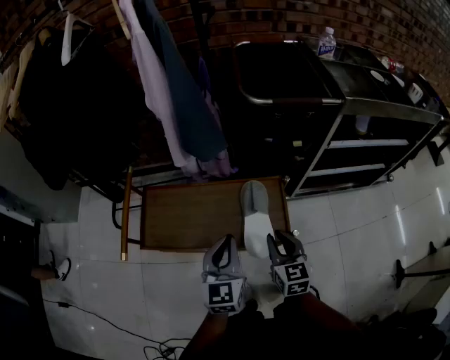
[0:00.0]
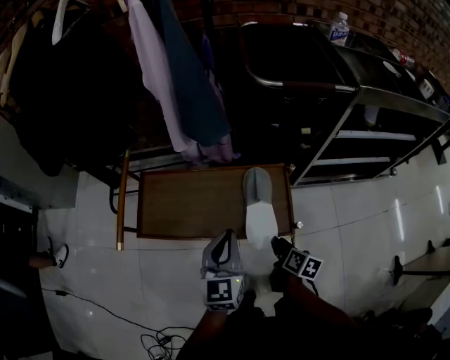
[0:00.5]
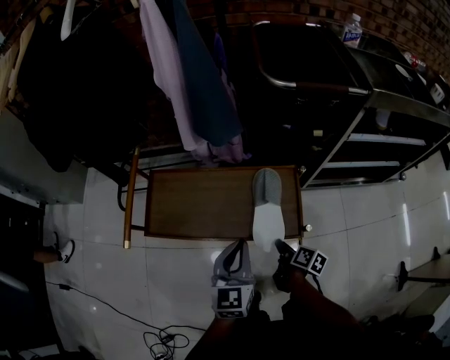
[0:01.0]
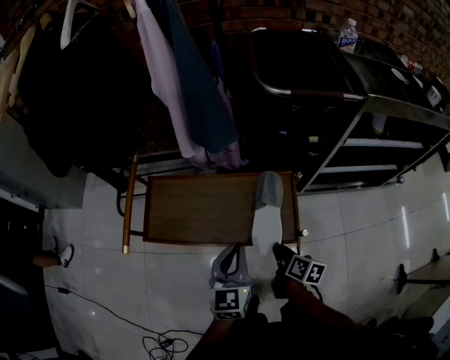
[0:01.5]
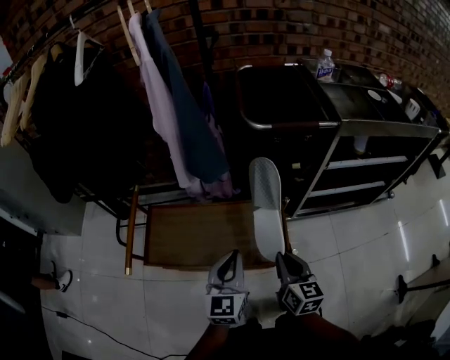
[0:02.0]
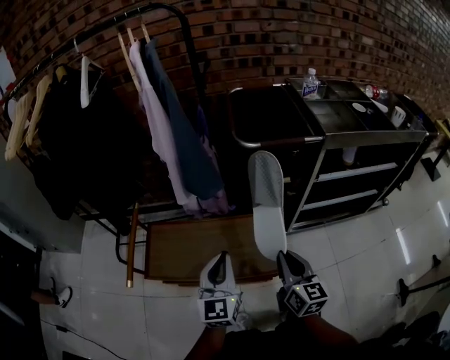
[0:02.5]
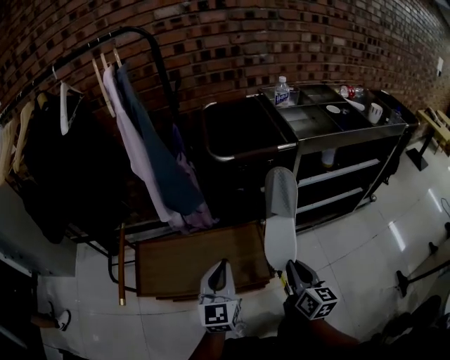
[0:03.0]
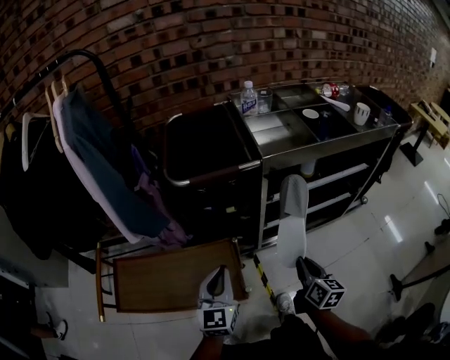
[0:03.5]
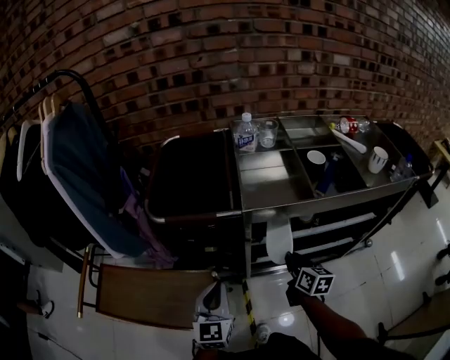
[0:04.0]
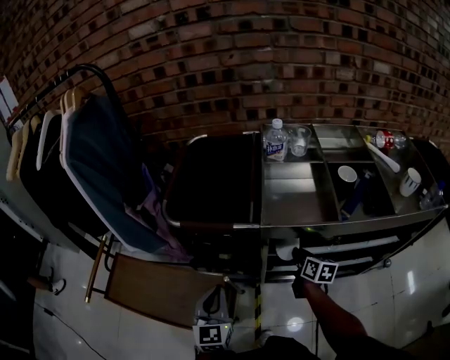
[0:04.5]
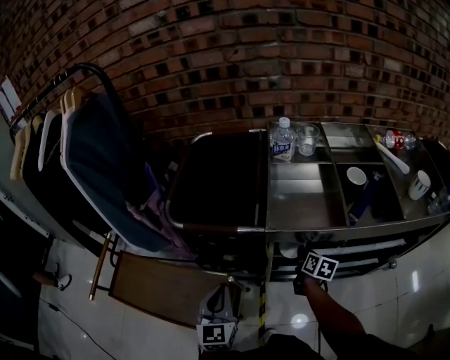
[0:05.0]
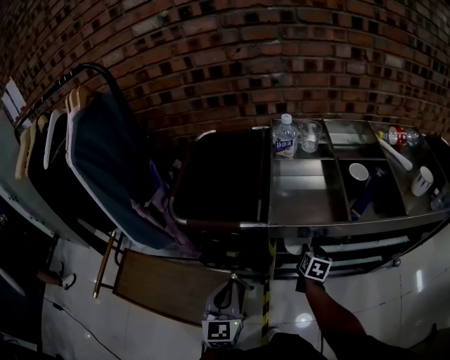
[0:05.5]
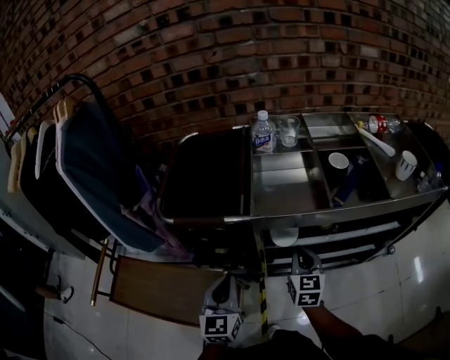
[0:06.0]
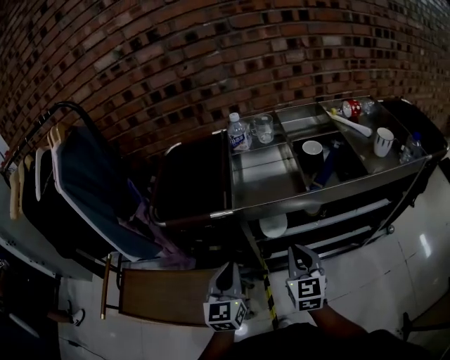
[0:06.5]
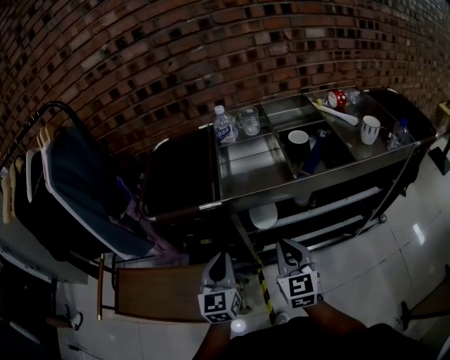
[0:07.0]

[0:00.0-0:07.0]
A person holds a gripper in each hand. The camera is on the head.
0:00.0 to 0:02.0: The right gripper moves some 15 cm downward and comes back.
0:02.0 to 0:03.5: The right gripper goes approximately 25 cm to the right, and rotates roughly 20 degrees. The left gripper heads to the right and forward, covering about 15 cm.
0:03.5 to 0:05.0: The left gripper travels forward and to the right by about 15 cm, and rotates roughly 20 degrees, while the right gripper shifts roughly 30 cm forward, and swivels approximately 20 degrees.
0:05.0 to 0:07.0: The right gripper travels upward and backward by about 25 cm, rotates roughly 50 degrees, and opens, then closes once more. Meanwhile the left gripper shifts some 10 cm to the right.

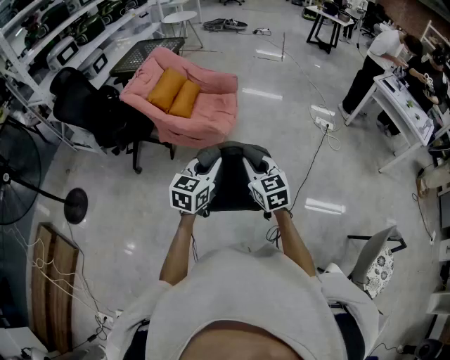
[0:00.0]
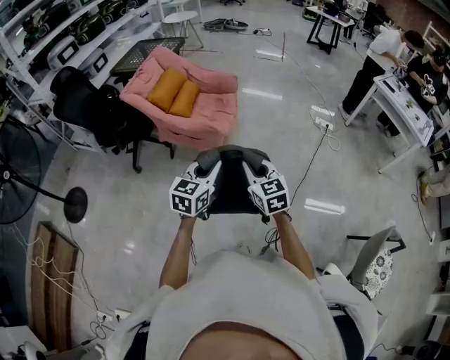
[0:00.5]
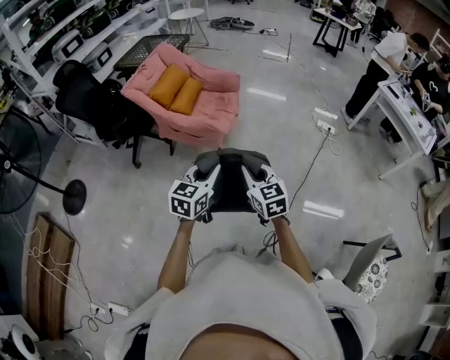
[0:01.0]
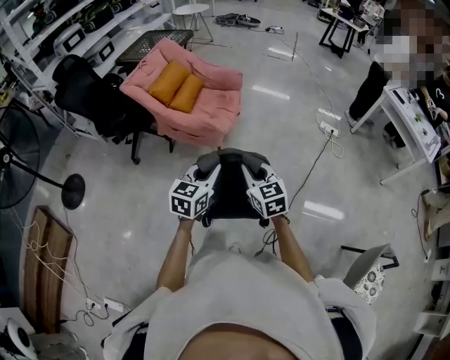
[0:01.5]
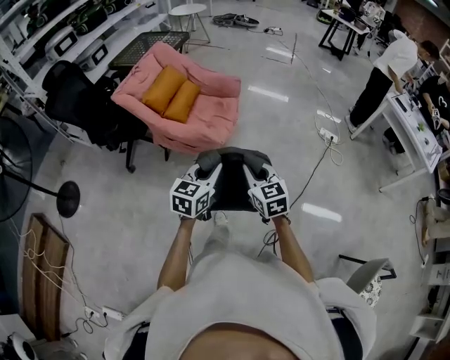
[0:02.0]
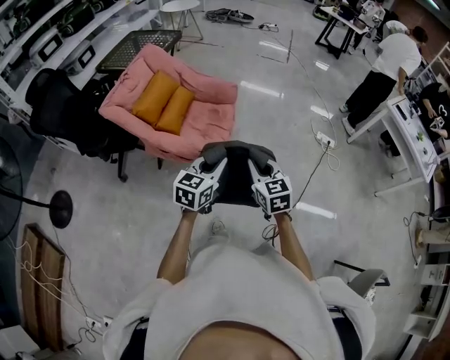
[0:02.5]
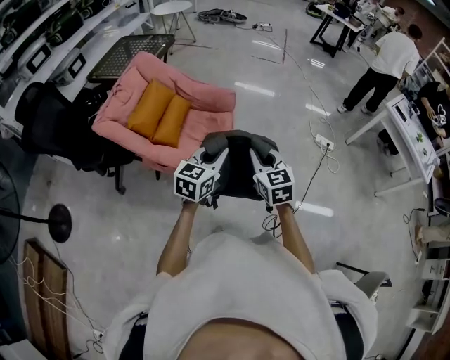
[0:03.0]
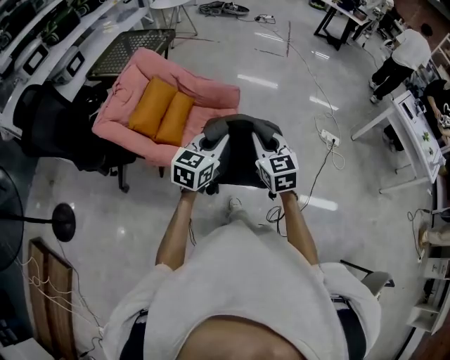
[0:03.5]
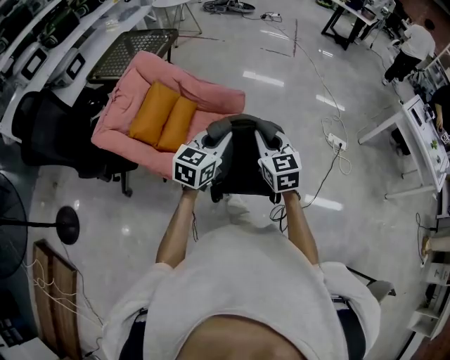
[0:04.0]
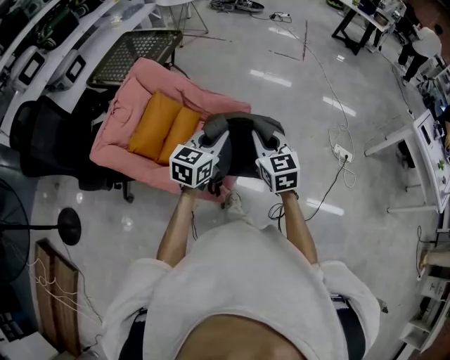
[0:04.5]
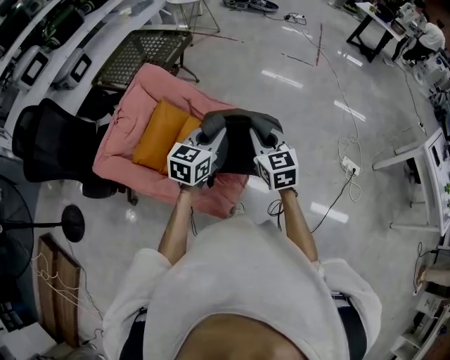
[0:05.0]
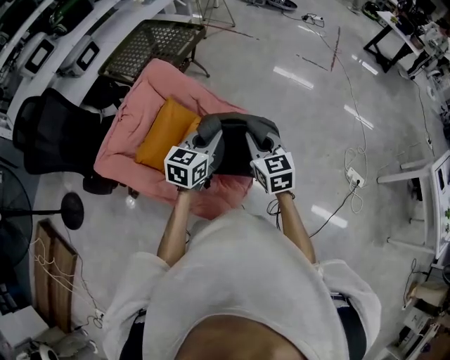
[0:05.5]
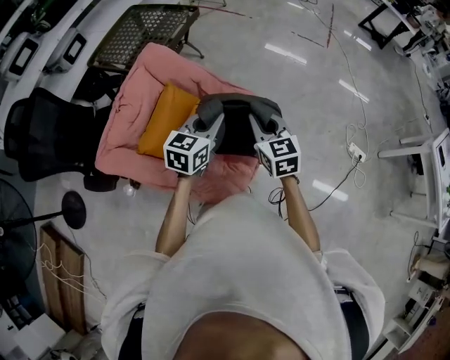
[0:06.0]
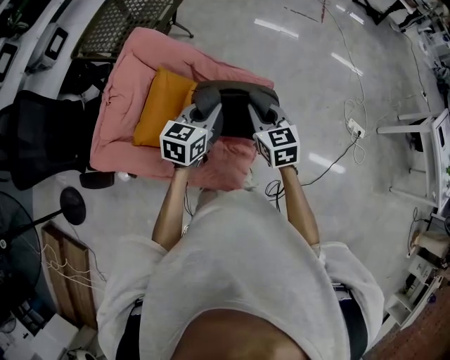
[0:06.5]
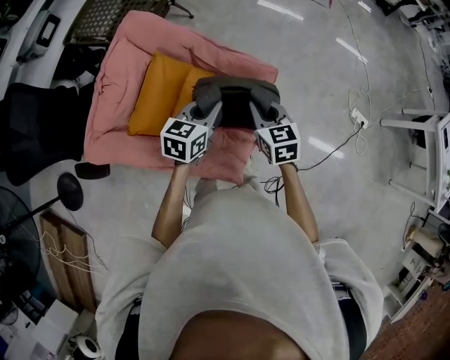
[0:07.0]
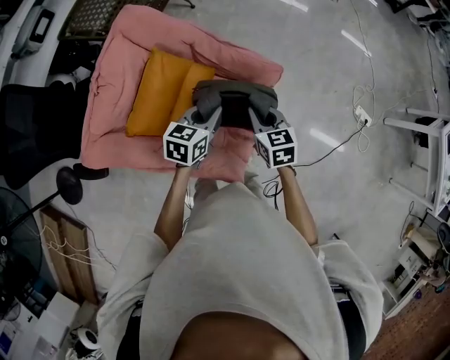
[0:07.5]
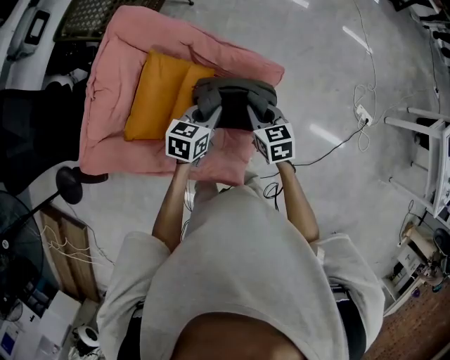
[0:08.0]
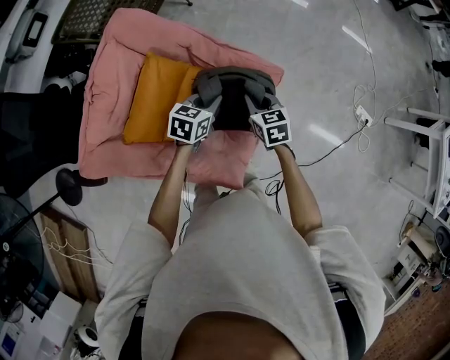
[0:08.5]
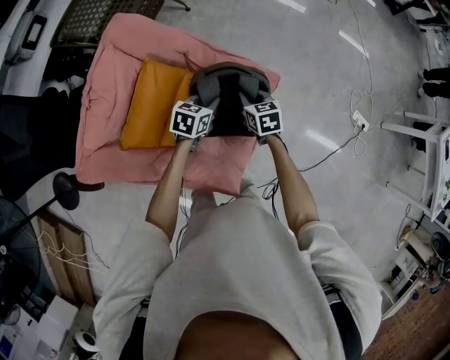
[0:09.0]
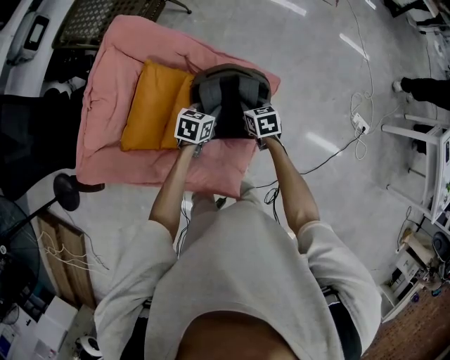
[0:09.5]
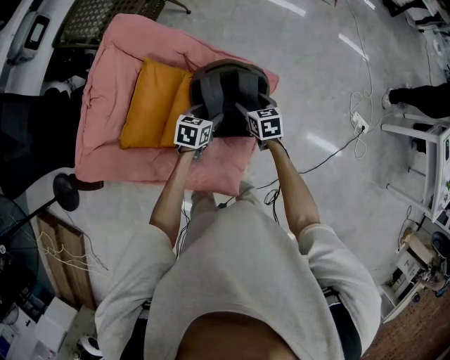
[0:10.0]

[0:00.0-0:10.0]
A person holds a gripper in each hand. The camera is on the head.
0:00.0 to 0:02.0: Both grippers travel together forward, about 10 cm.
0:02.0 to 0:04.0: The pair of grippers is taken forward, some 40 cm.
0:04.0 to 0:06.0: Both grippers travel together forward and to the left, about 35 cm.
0:06.0 to 0:08.0: The two grippers go approximately 20 cm downward. The right gripper rotates about 20 degrees. The left gripper changes its angle by about 20 degrees.
0:08.0 to 0:10.0: The right gripper heads downward and forward, covering some 10 cm, and opens its fingers. The left gripper goes some 10 cm downward, and opens.

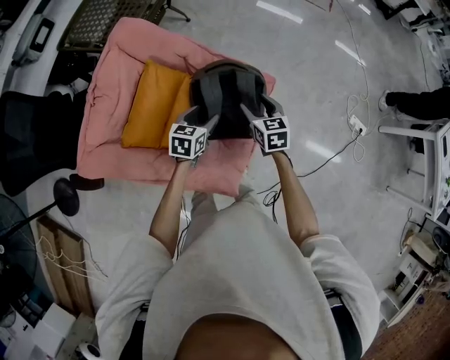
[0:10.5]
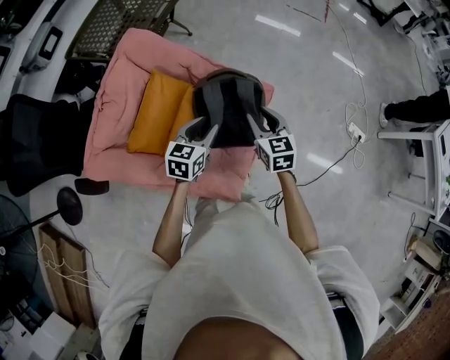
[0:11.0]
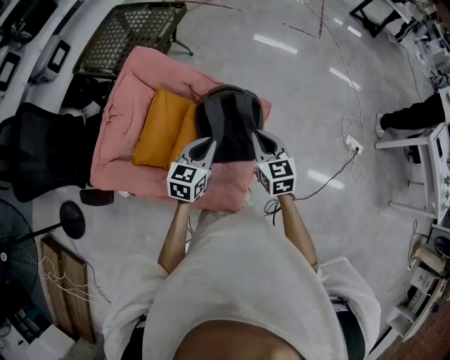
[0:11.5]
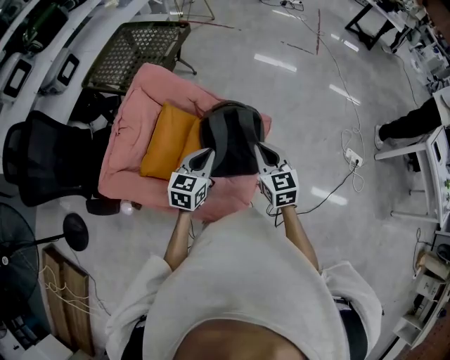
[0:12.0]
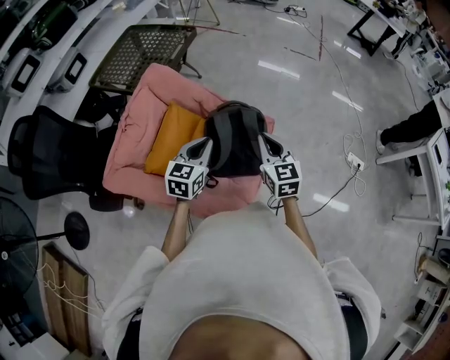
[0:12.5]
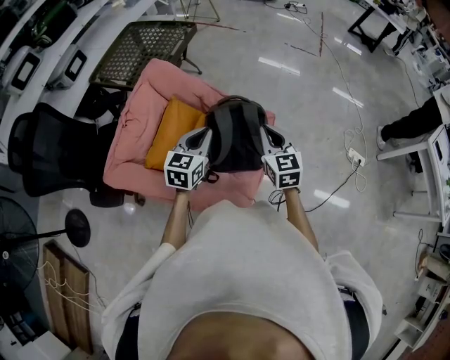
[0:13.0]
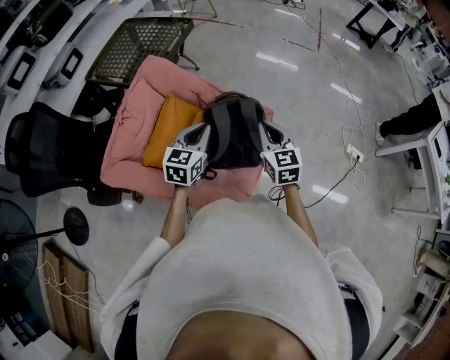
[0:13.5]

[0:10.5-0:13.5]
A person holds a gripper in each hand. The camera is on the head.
0:10.5 to 0:12.0: Both grippers move upward and backward, about 20 cm. The left gripper closes up, while the right gripper closes.
0:12.0 to 0:13.5: The grippers make only small movements.

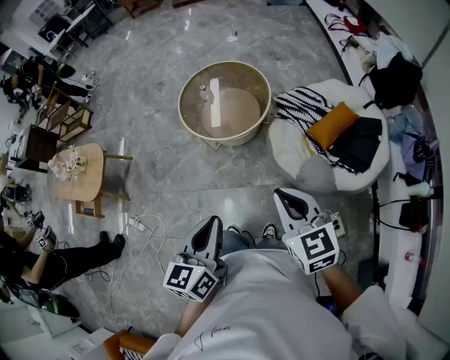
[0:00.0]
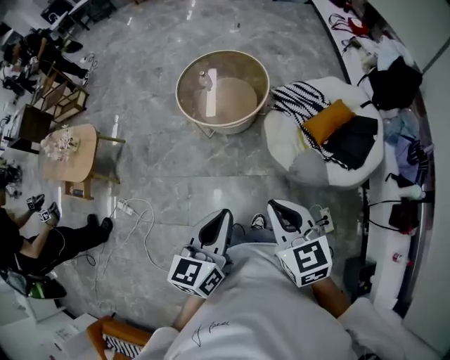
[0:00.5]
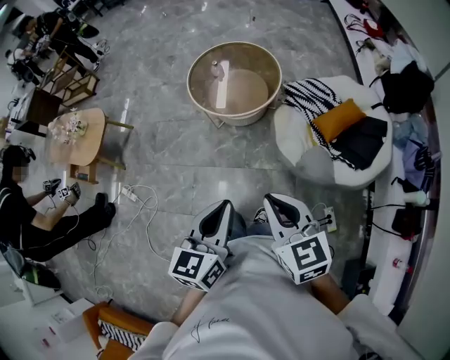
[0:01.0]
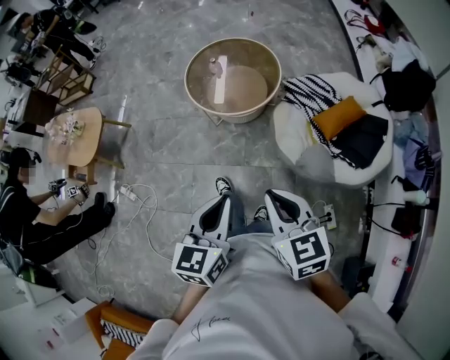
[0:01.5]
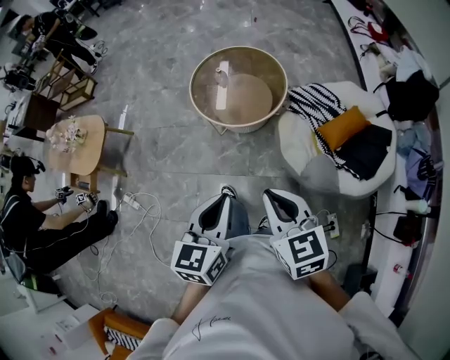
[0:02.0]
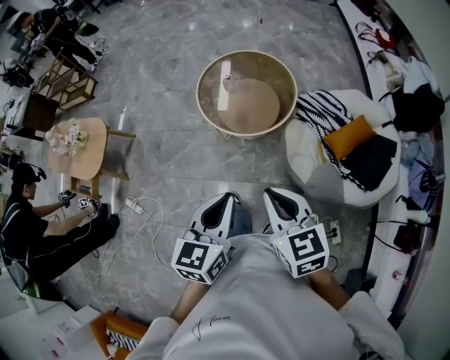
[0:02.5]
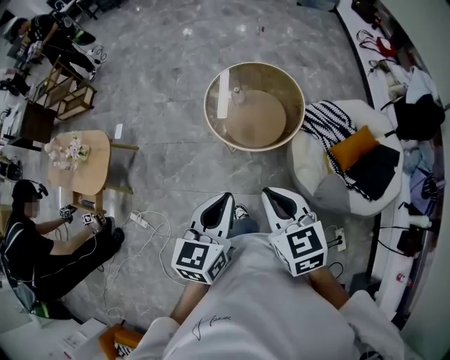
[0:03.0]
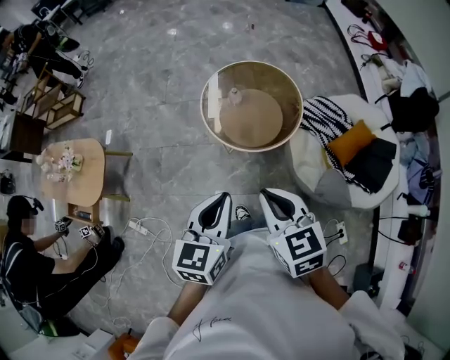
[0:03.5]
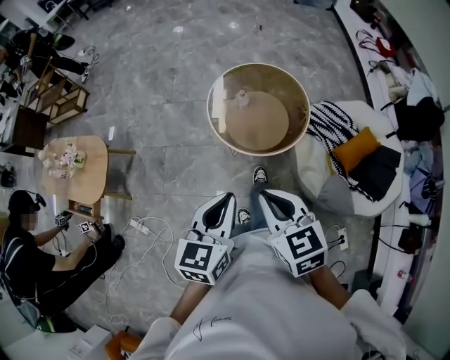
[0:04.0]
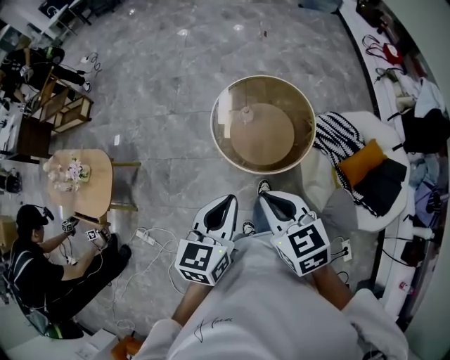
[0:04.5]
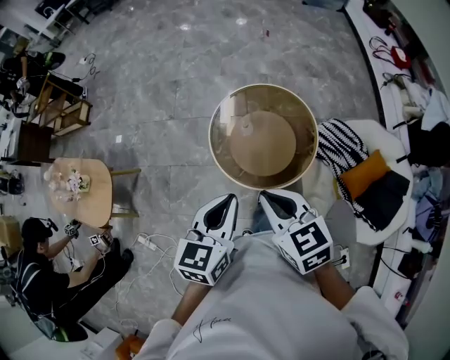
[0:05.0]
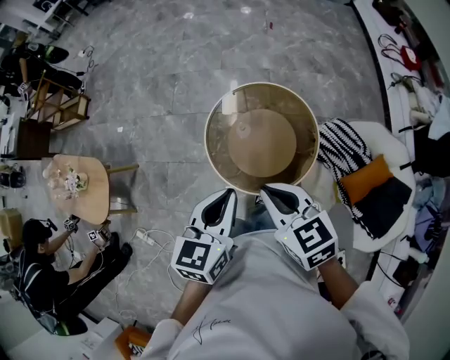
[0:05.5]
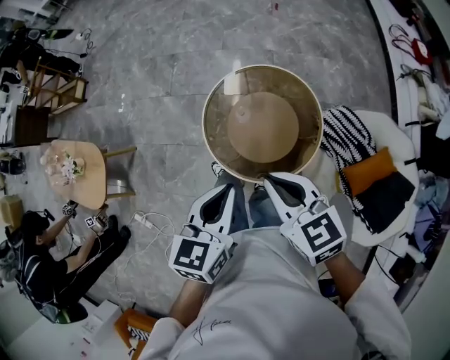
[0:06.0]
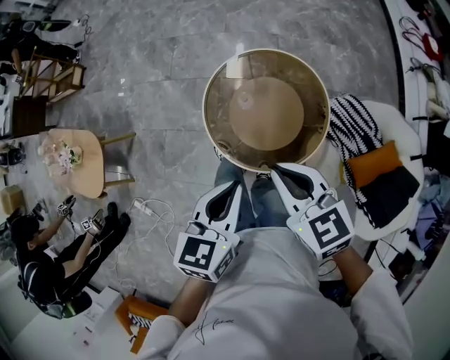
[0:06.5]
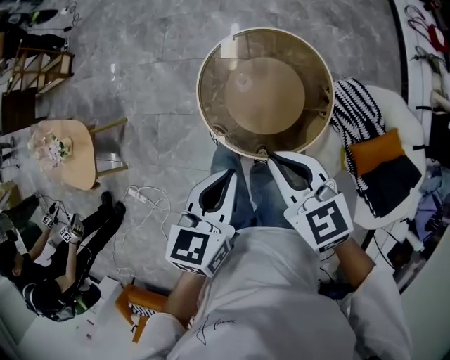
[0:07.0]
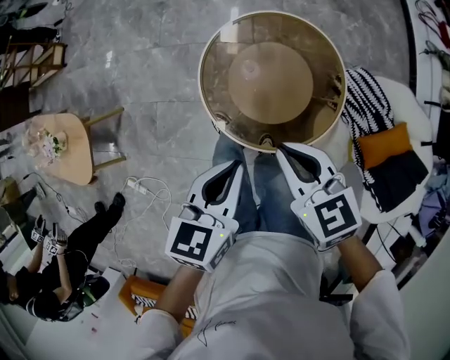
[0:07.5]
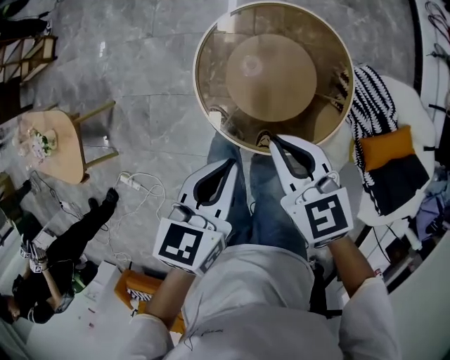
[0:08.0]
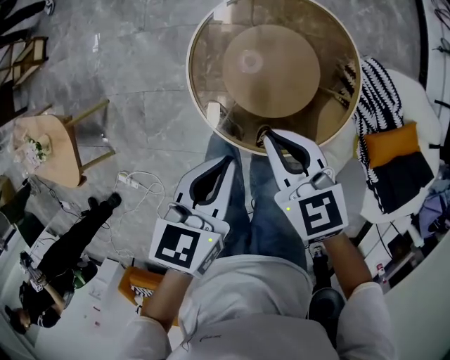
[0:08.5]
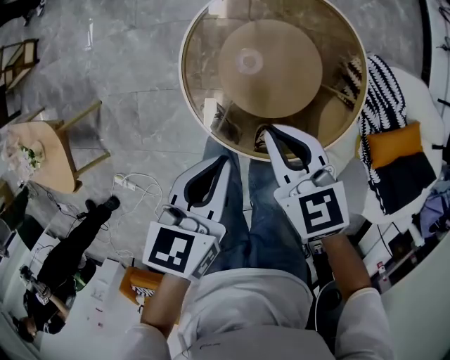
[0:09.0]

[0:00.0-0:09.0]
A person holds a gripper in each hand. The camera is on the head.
0:00.0 to 0:02.0: The right gripper heads to the left, covering roughly 5 cm, and moves some 5 cm backward and comes back.
0:02.0 to 0:04.5: Both grippers move forward and to the left, roughly 30 cm.
0:04.5 to 0:07.0: Both grippers move forward, downward and to the right, about 20 cm.
0:07.0 to 0:09.0: Both grippers travel together downward and forward, approximately 20 cm.
